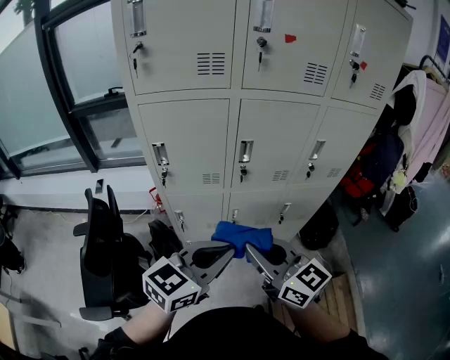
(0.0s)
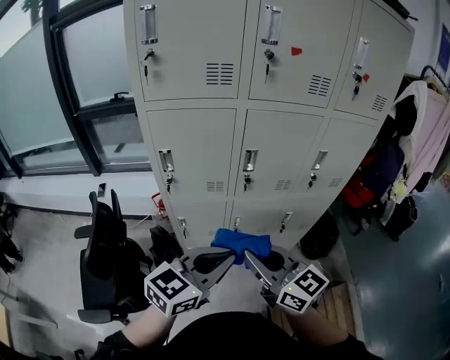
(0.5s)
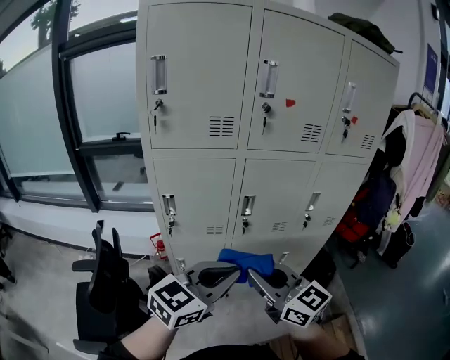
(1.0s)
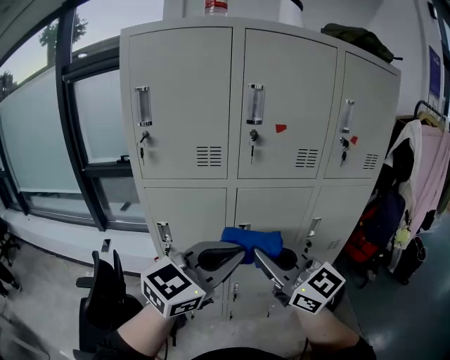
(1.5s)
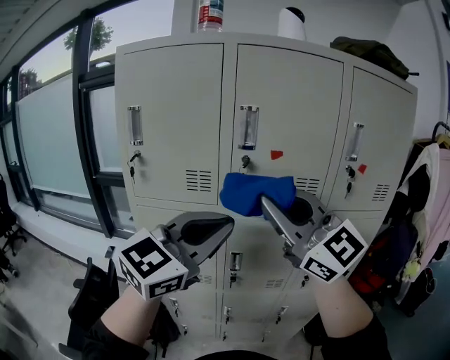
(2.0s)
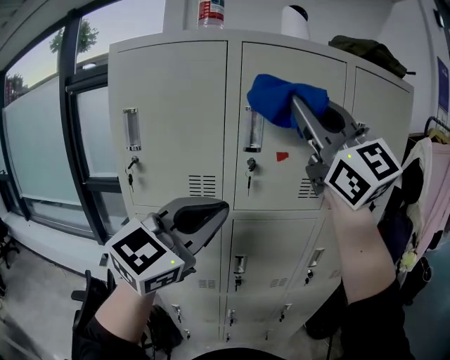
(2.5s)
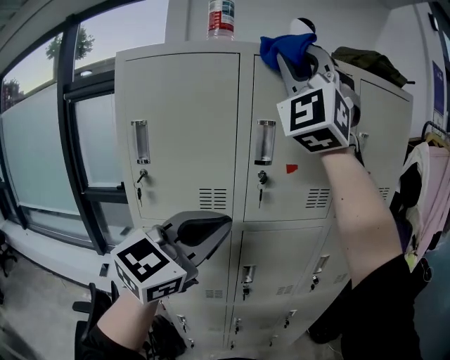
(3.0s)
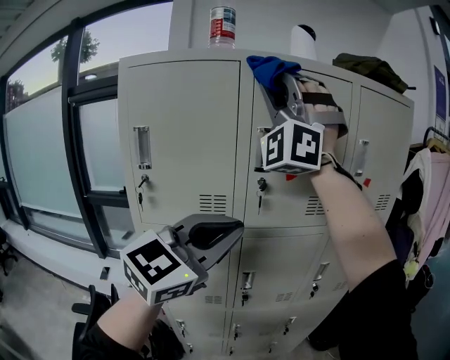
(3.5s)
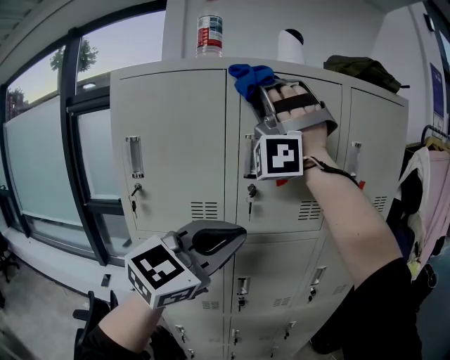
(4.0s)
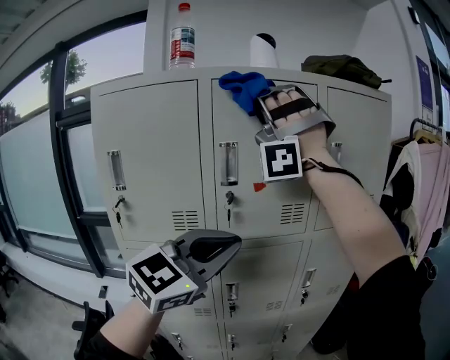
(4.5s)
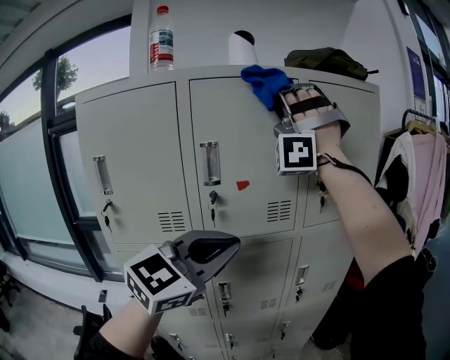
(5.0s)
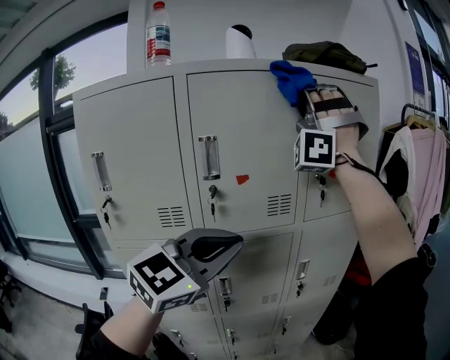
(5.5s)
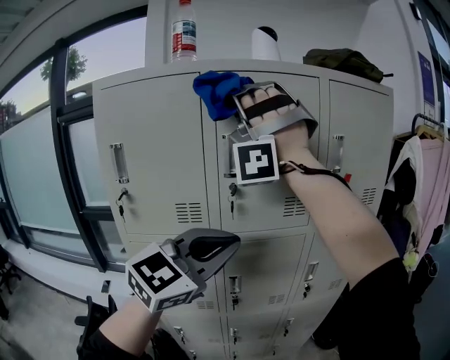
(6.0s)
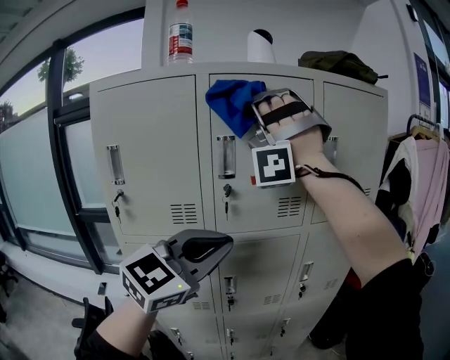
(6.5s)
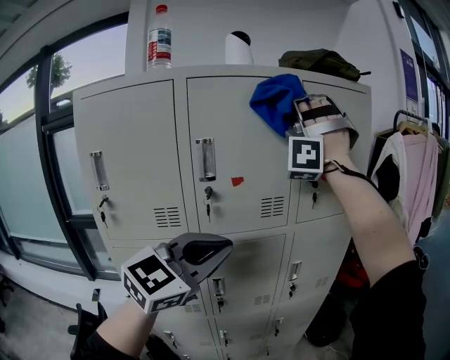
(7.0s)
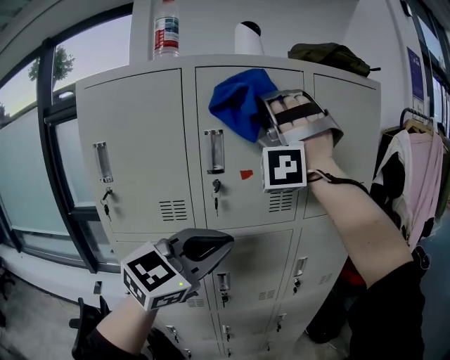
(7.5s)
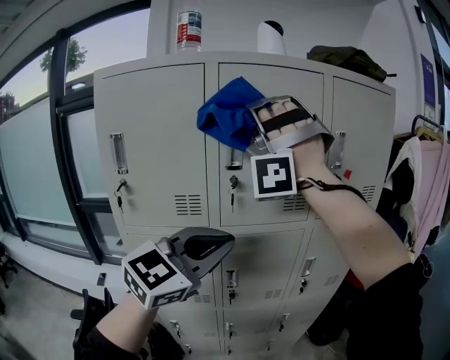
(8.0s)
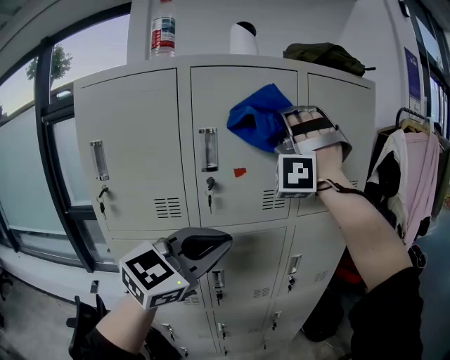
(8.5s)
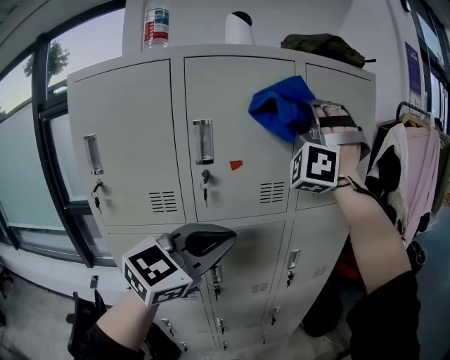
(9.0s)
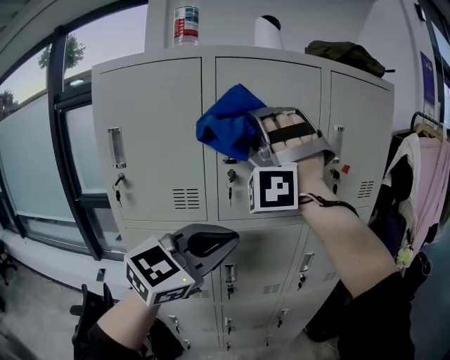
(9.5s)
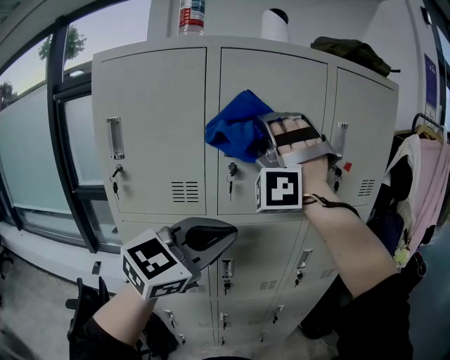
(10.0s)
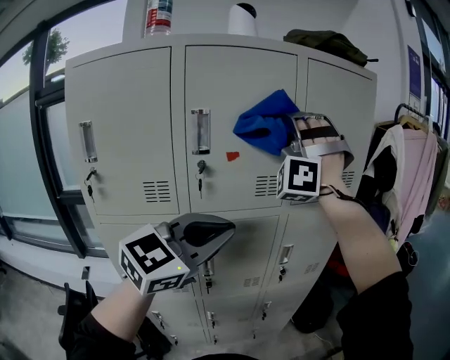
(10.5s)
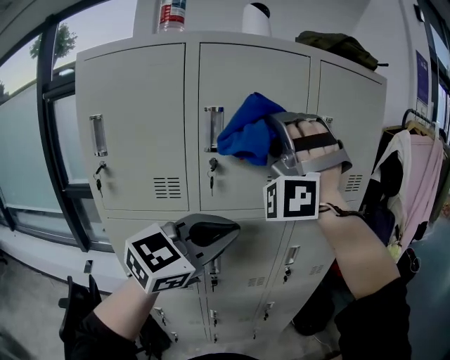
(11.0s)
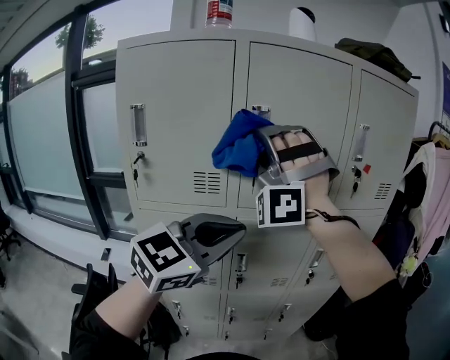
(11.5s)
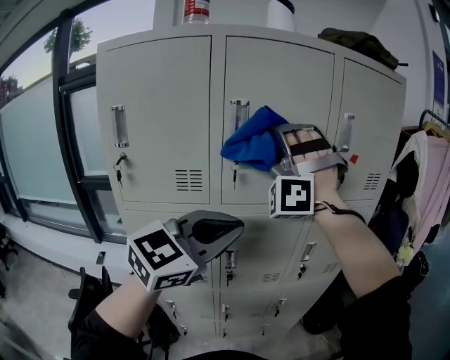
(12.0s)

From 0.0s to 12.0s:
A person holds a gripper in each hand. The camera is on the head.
From 0.0s to 2.0s: The left gripper goes about 30 cm upward, and rotates approximately 30 degrees.

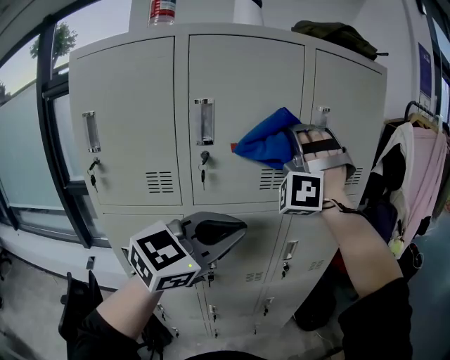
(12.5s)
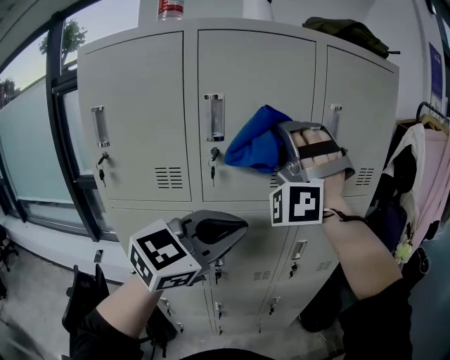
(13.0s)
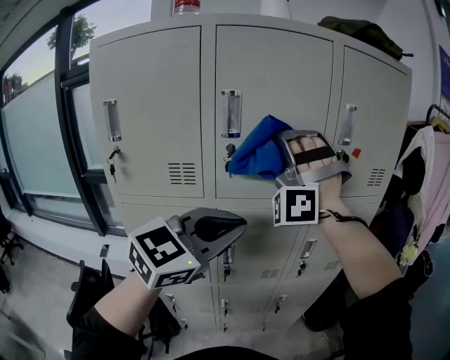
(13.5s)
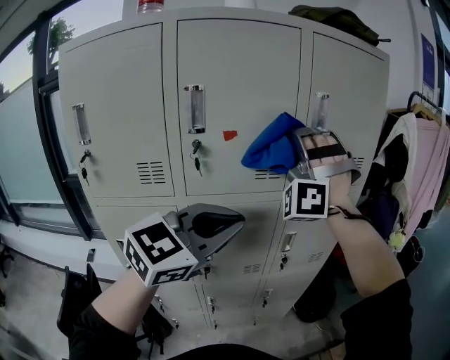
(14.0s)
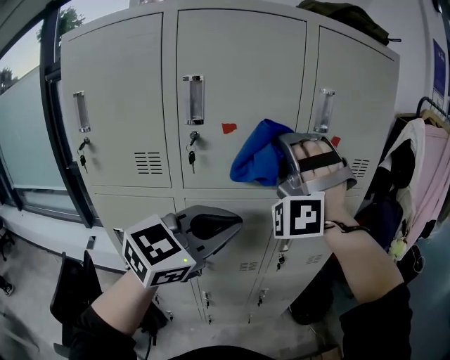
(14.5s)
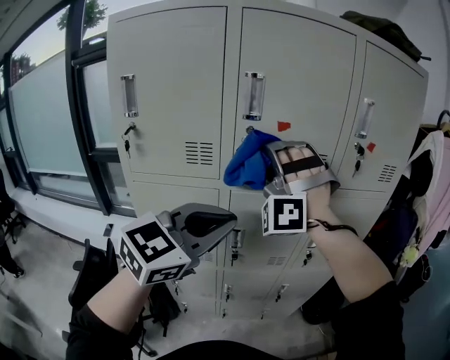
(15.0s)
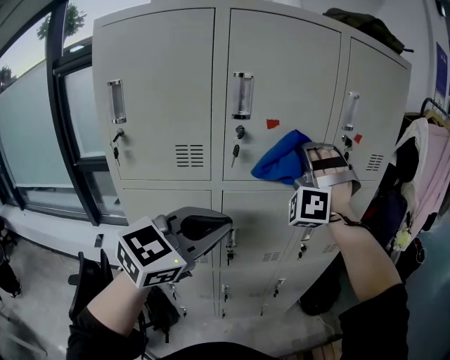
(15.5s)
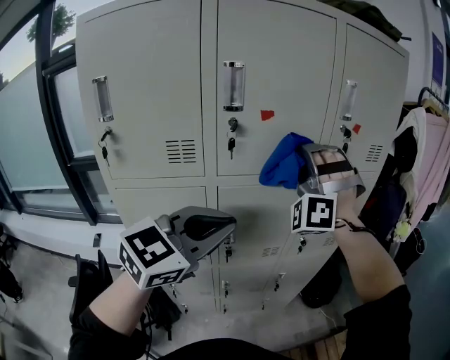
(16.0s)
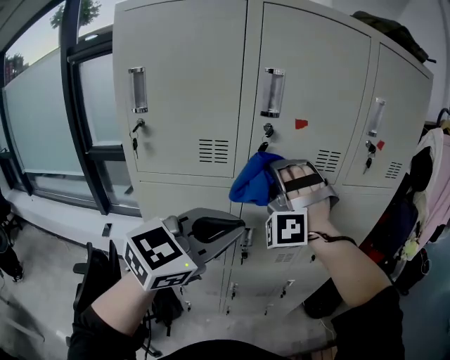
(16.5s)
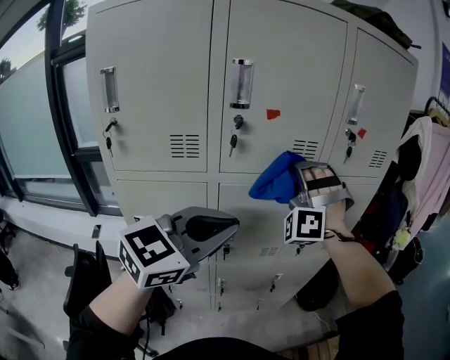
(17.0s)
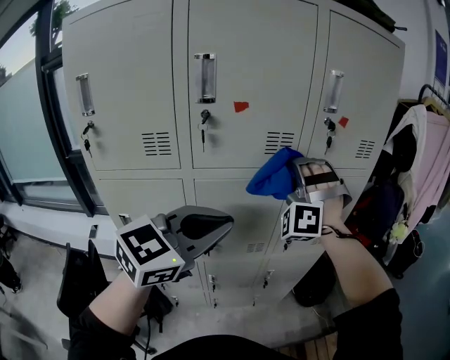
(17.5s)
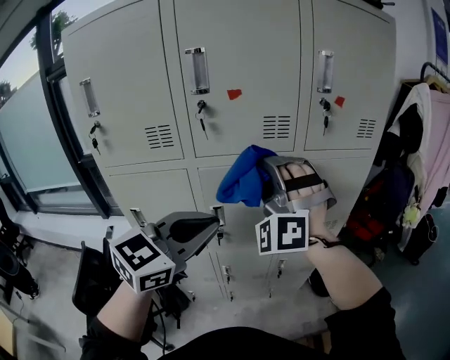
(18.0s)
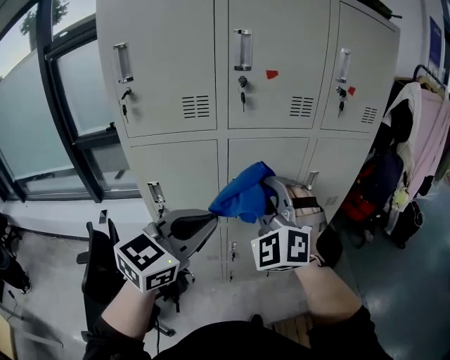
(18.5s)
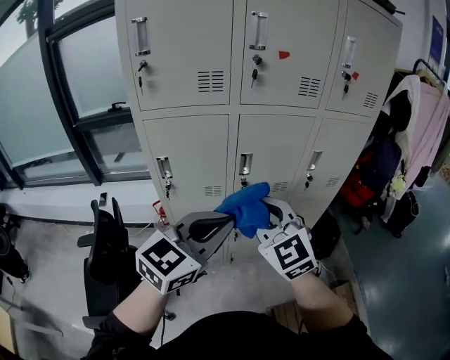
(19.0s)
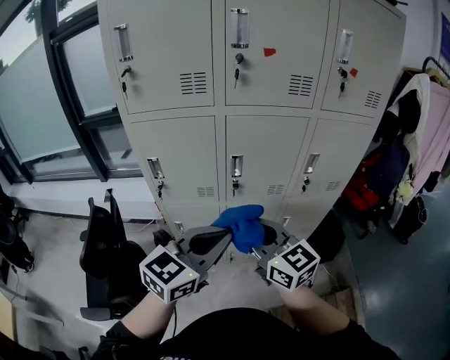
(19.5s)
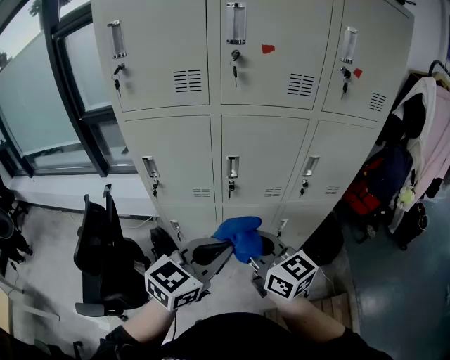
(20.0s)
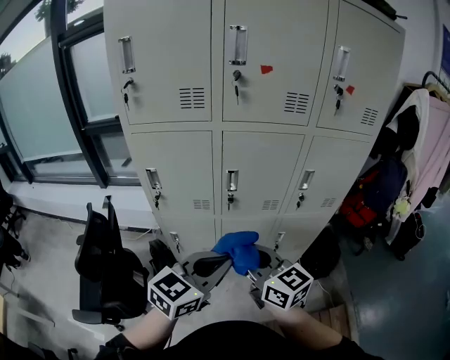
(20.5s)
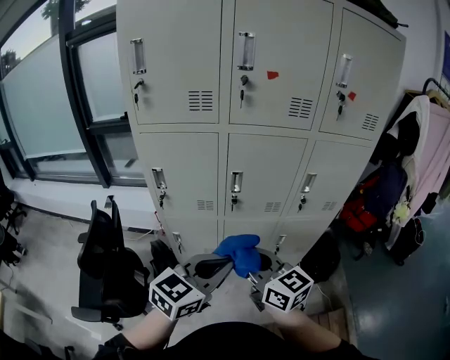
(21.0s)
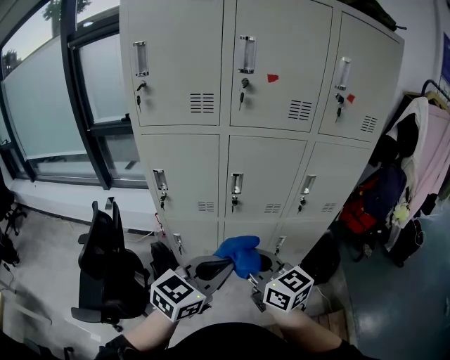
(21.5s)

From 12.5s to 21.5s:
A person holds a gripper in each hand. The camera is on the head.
From 14.5s to 17.0s: The left gripper changes place by approximately 10 cm.
From 17.0s to 19.5s: The left gripper travels downward by roughly 15 cm.
From 19.5s to 21.5s: The left gripper changes place by approximately 5 cm.

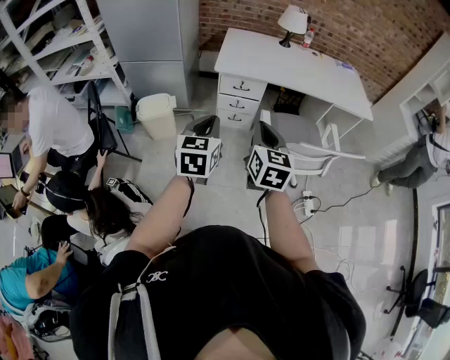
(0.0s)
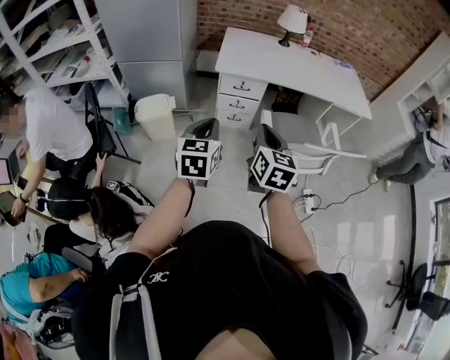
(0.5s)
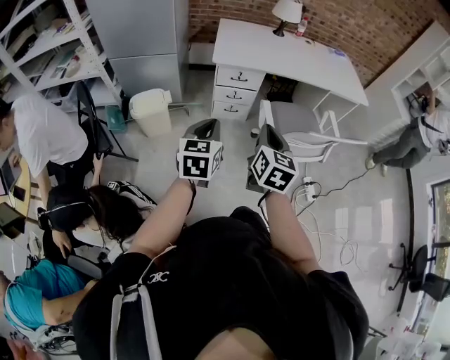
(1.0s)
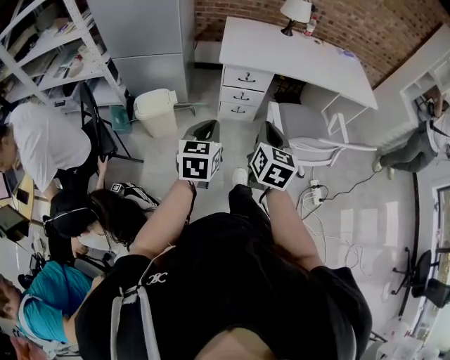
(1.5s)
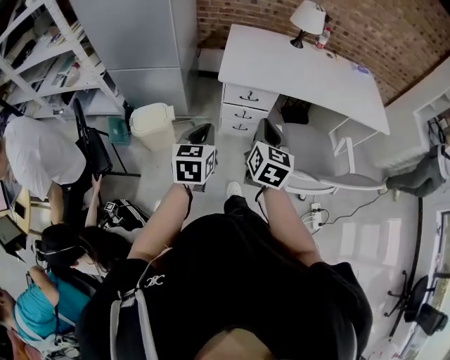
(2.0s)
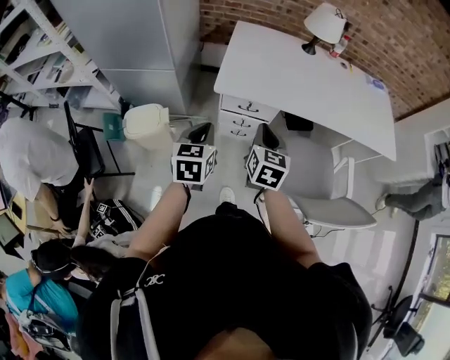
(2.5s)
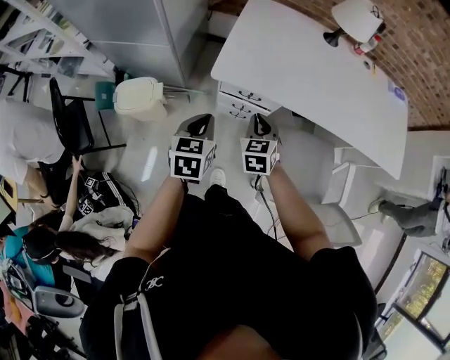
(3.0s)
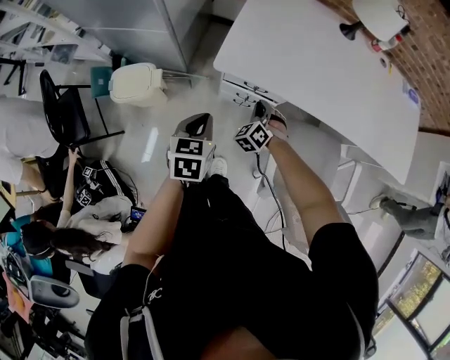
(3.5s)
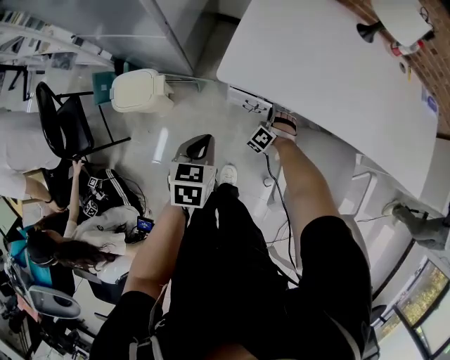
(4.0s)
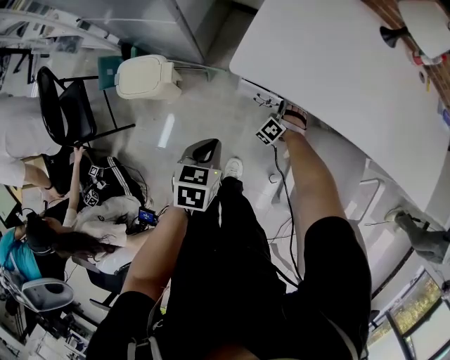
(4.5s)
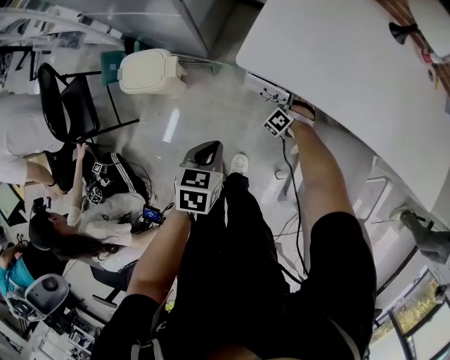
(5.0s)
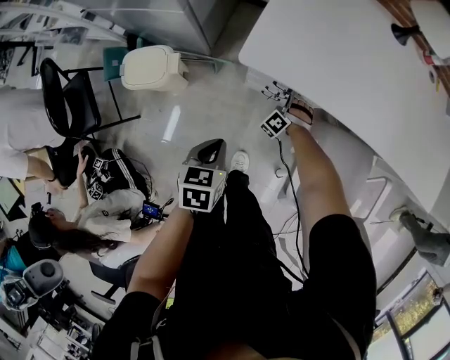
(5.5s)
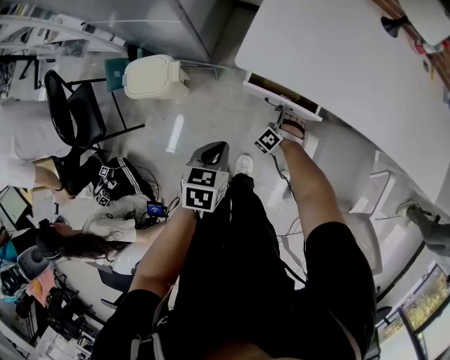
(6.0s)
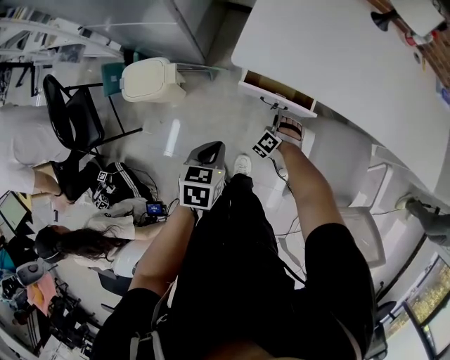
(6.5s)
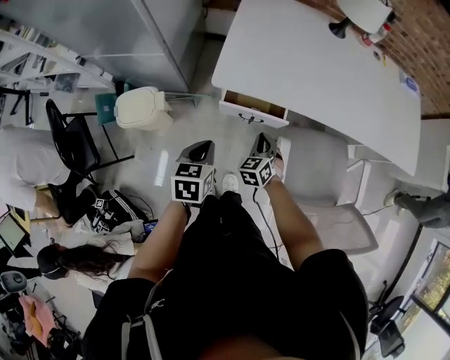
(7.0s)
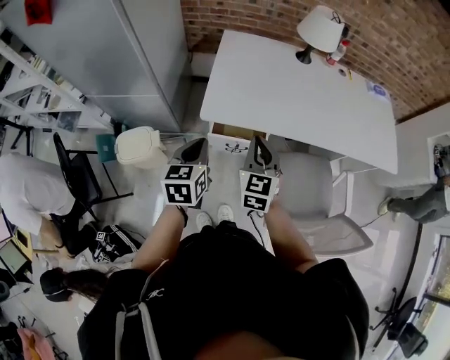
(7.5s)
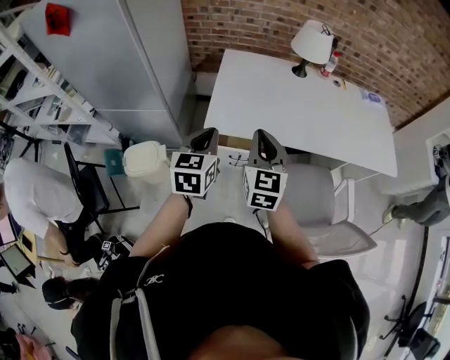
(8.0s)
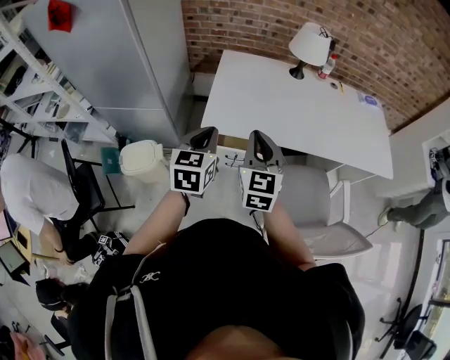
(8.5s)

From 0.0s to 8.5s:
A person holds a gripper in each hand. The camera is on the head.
From 0.0s to 2.0s: The right gripper is displaced forward by roughly 20 cm; the left gripper heads forward, downward and to the left, covering approximately 25 cm.
From 2.0s to 4.0s: The left gripper goes some 30 cm forward and downward, and swivels roughly 30 degrees. Meanwhile the right gripper moves downward and forward, about 60 cm, and rotates around the line of its fingers by some 90 degrees, counterclockwise from behind.
From 4.0s to 6.5s: Both grippers move backward, some 5 cm.
From 6.5s to 8.5s: The right gripper travels upward by some 50 cm, rolls clockwise, seen from behind, by about 70 degrees, and closes up. Meanwhile the left gripper heads upward, covering roughly 30 cm, and turns by roughly 30 degrees.
